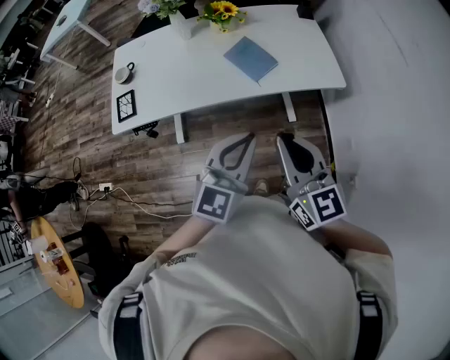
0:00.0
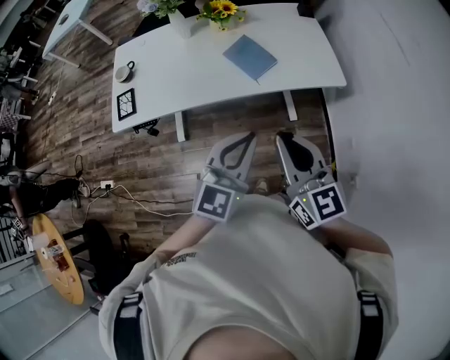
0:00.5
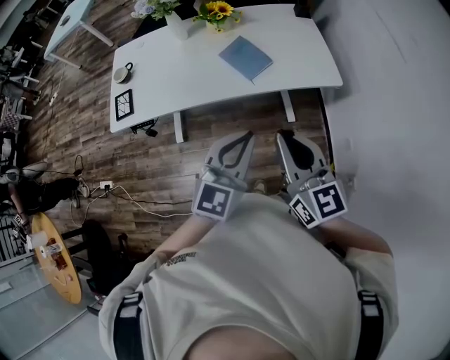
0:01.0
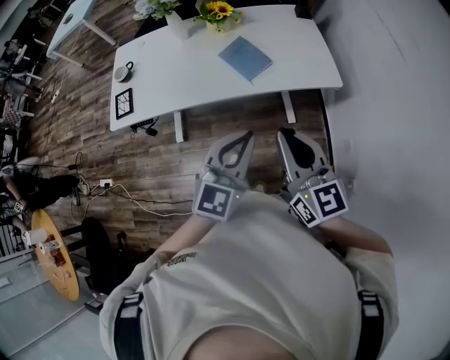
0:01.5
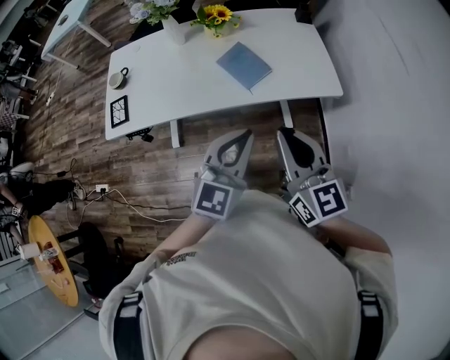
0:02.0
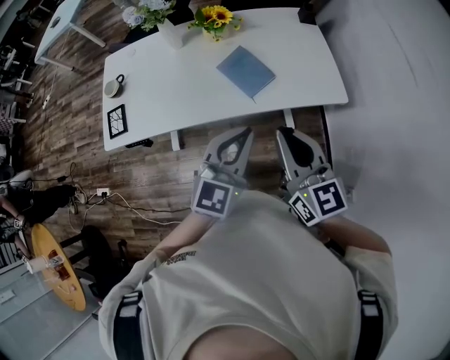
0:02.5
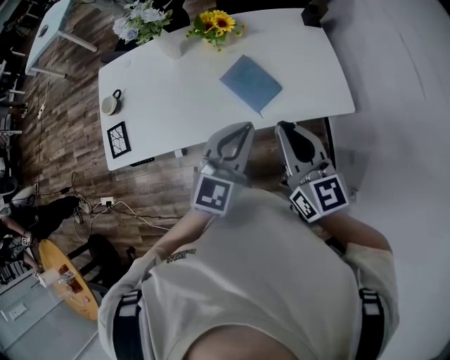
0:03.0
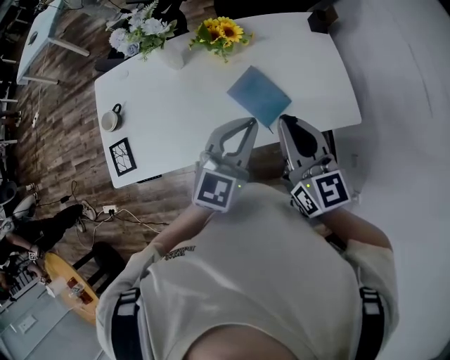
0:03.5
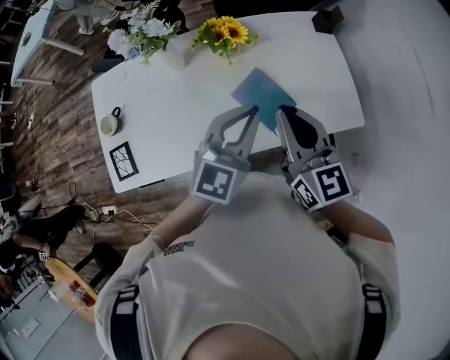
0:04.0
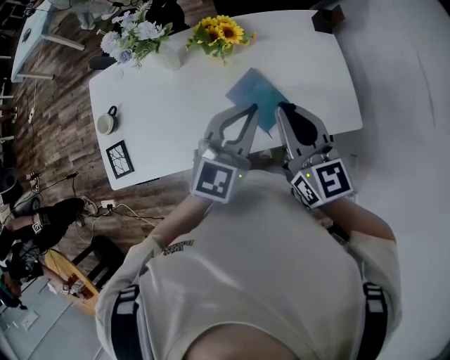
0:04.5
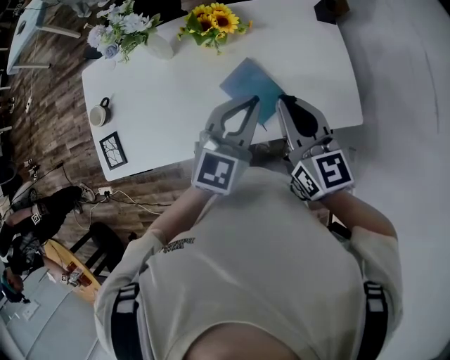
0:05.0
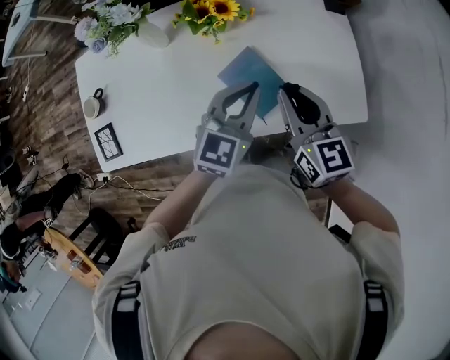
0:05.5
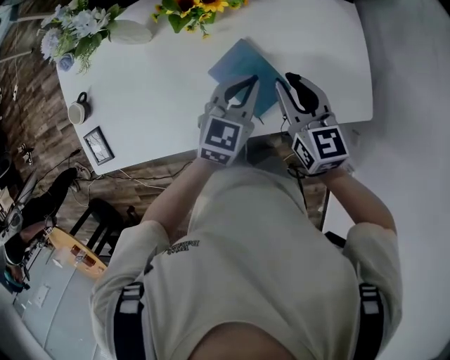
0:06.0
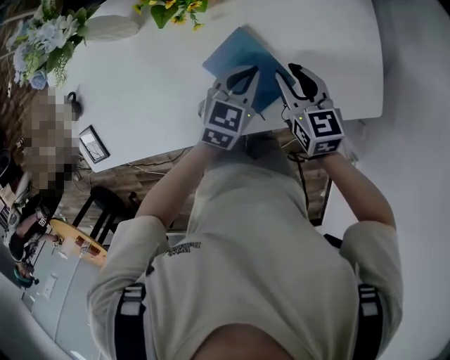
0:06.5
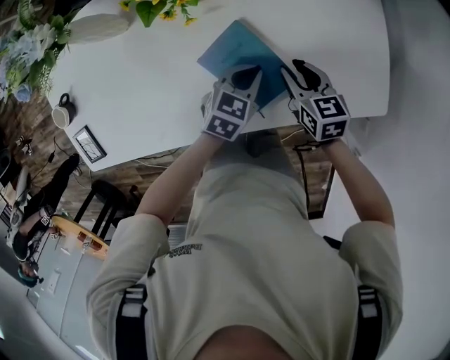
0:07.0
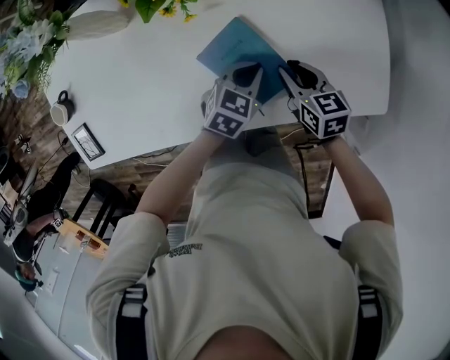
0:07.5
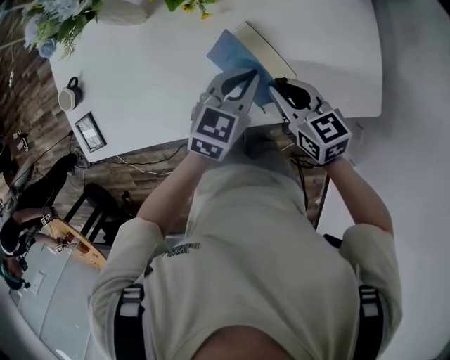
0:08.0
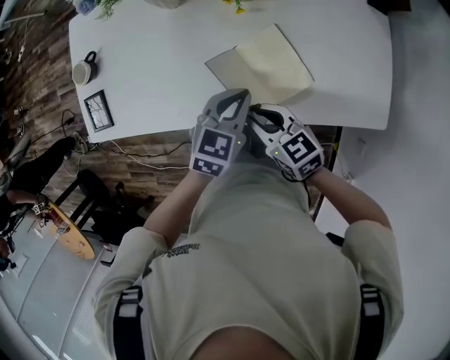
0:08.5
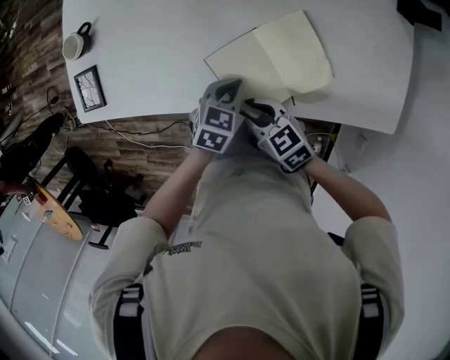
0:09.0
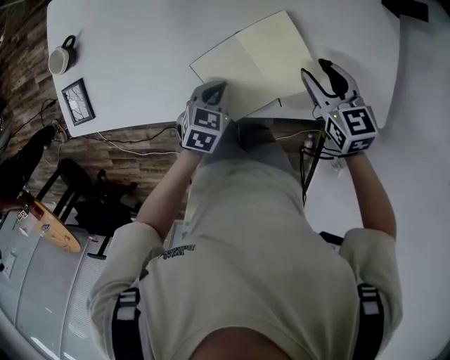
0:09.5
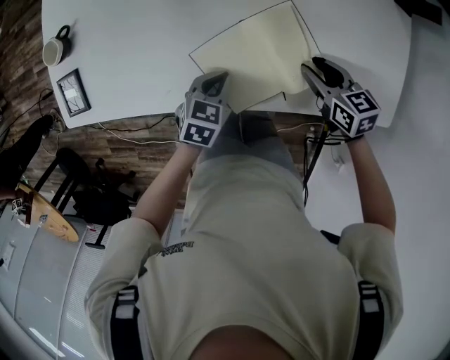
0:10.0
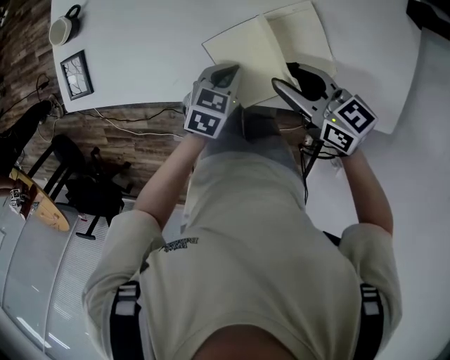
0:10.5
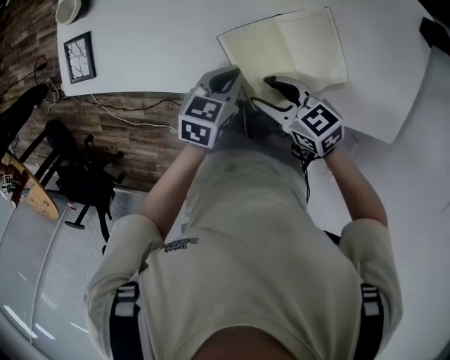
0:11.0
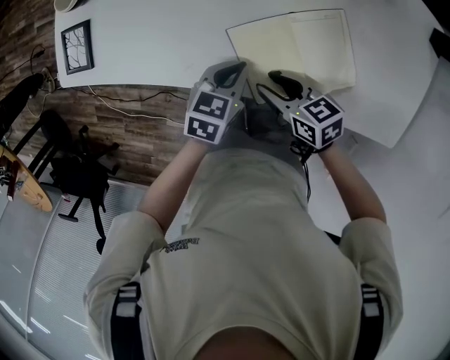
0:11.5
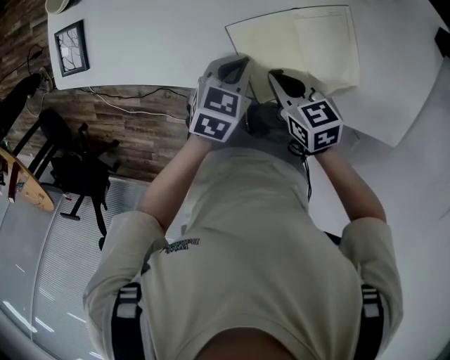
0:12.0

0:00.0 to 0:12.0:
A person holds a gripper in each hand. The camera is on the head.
0:00.0 to 0:02.0: The right gripper heads forward, covering roughly 5 cm; the left gripper changes place by some 5 cm.
0:02.0 to 0:04.0: The left gripper is displaced forward by approximately 30 cm. Meanwhile the right gripper is displaced forward and to the left by approximately 30 cm.
0:04.0 to 0:06.0: The grippers both shift downward and forward by some 20 cm. The left gripper changes its angle by approximately 30 degrees; the right gripper opens.
0:06.0 to 0:08.0: The right gripper goes some 10 cm downward and backward, and swivels approximately 20 degrees. The left gripper goes downward and returns, roughly 15 cm each way.
0:08.0 to 0:10.0: The right gripper heads downward, covering some 10 cm, travels to the left and back again, approximately 15 cm each way, and opens up. Meanwhile the left gripper heads to the left, downward and backward, covering about 20 cm, and swivels approximately 20 degrees.
0:10.0 to 0:12.0: The right gripper goes roughly 20 cm to the left, and closes its fingers.

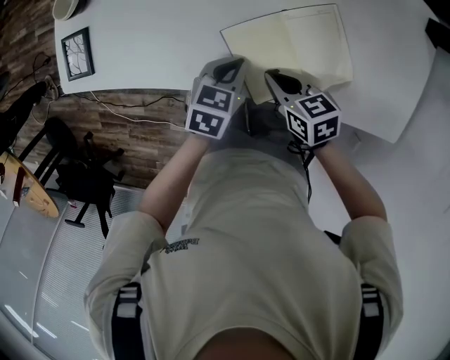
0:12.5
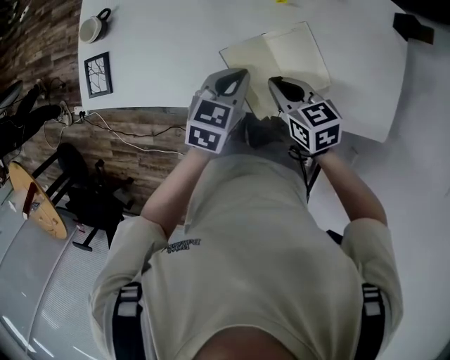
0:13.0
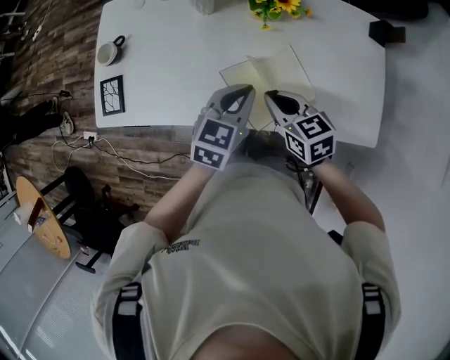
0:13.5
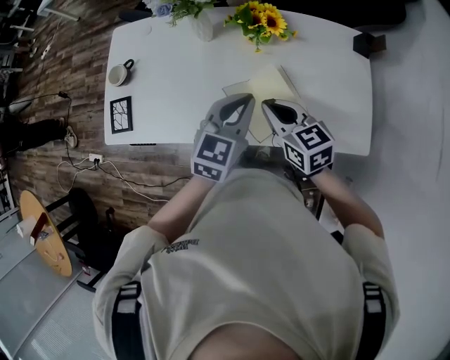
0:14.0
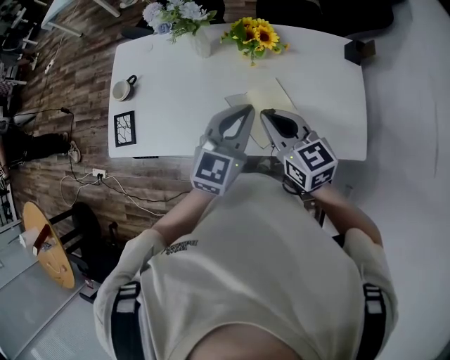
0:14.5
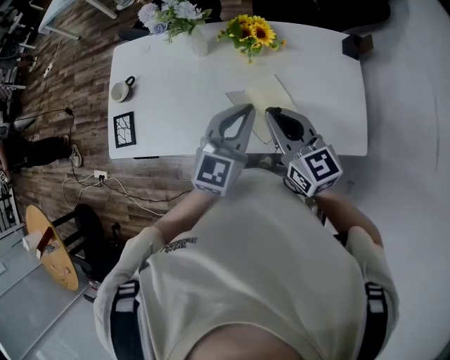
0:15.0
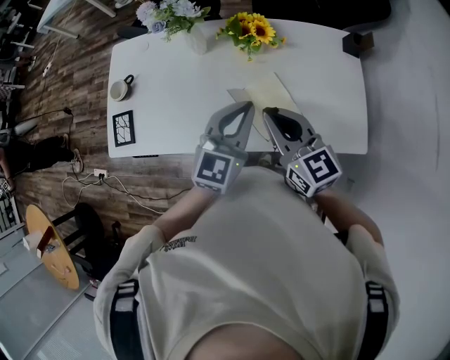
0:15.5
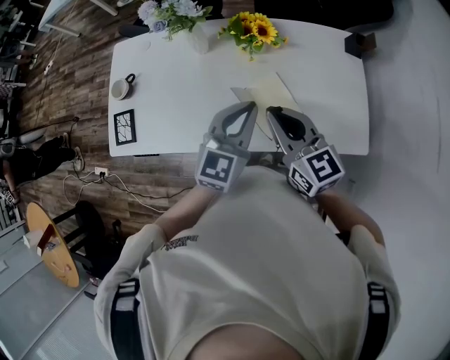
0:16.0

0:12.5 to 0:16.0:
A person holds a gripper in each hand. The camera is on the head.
0:12.5 to 0:14.5: The grippers both shift upward by some 30 cm. The left gripper tilts its fingers about 40 degrees upward; the right gripper changes its angle by approximately 40 degrees.
0:14.5 to 0:16.0: The grippers stay close to where they were, moving slightly.

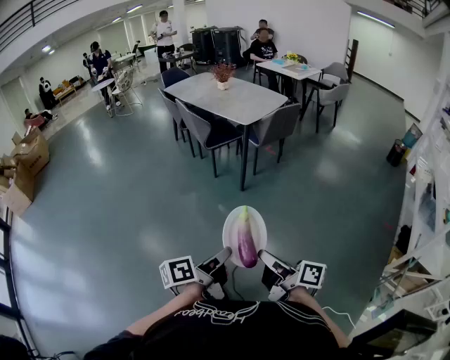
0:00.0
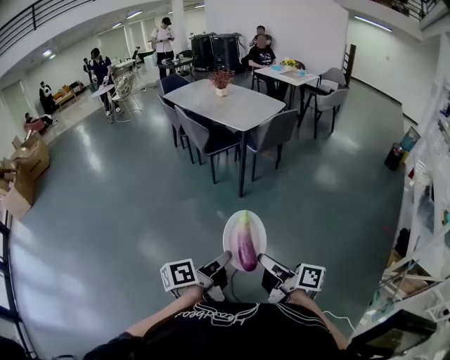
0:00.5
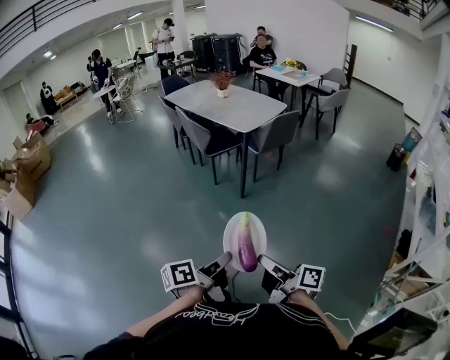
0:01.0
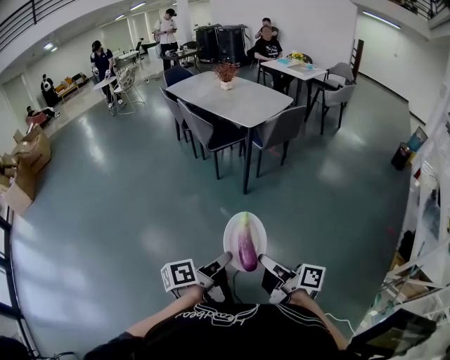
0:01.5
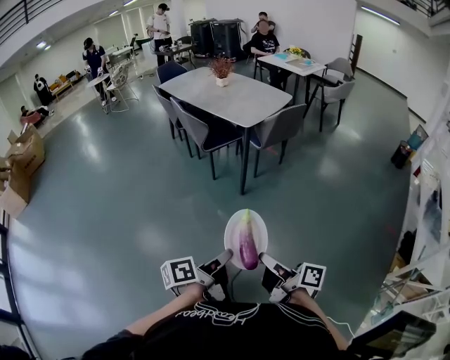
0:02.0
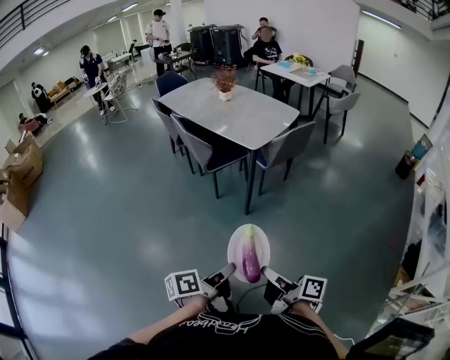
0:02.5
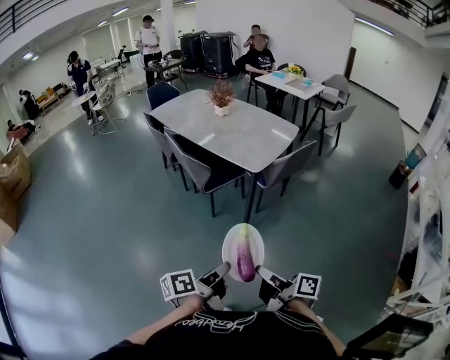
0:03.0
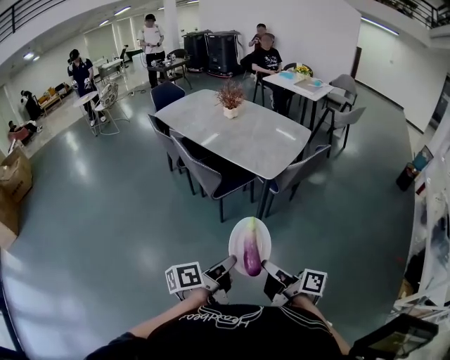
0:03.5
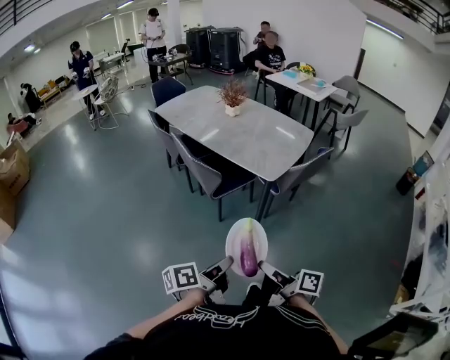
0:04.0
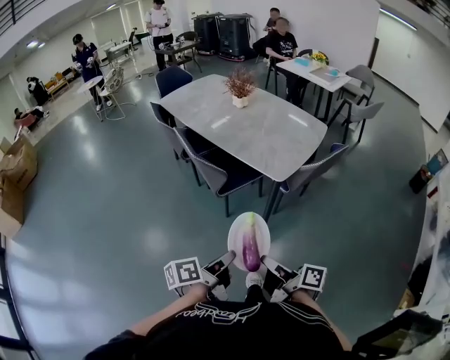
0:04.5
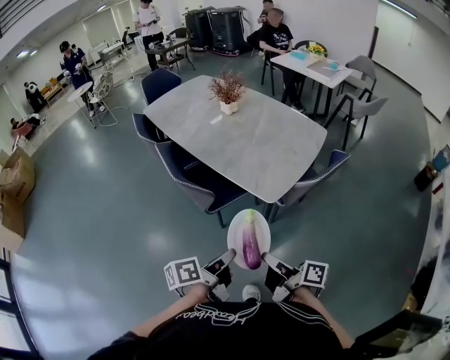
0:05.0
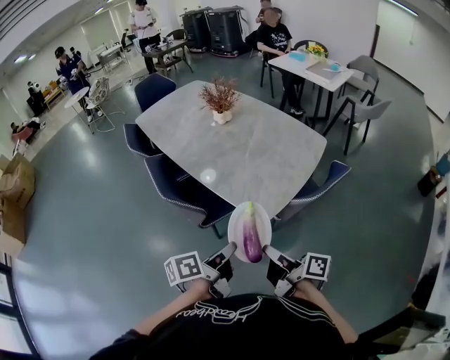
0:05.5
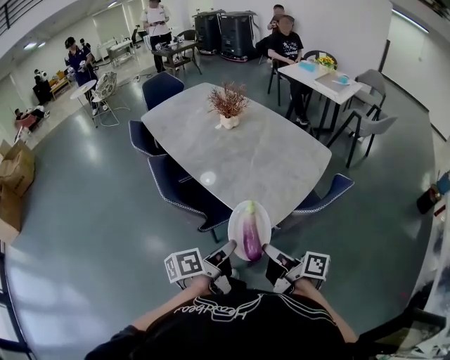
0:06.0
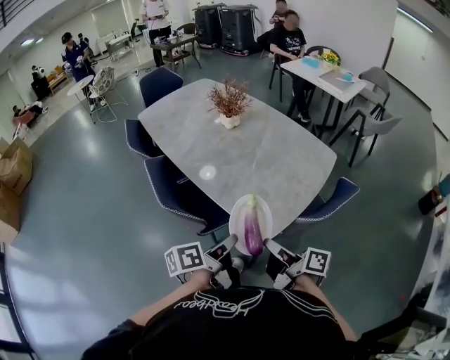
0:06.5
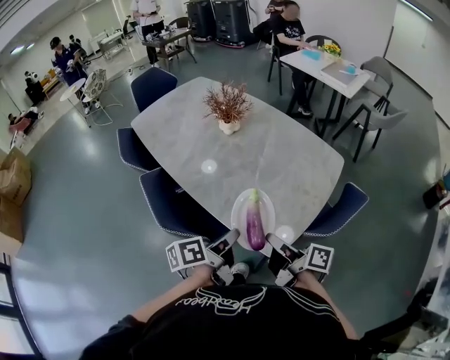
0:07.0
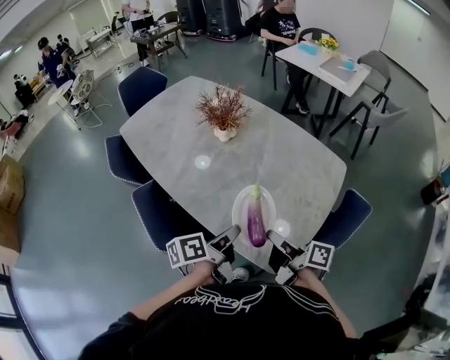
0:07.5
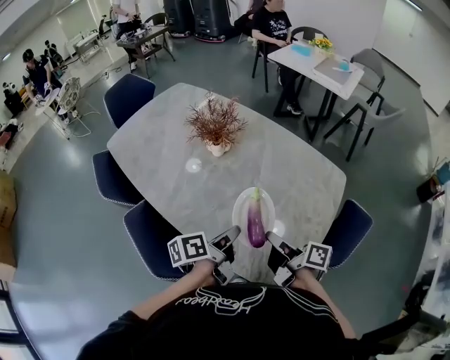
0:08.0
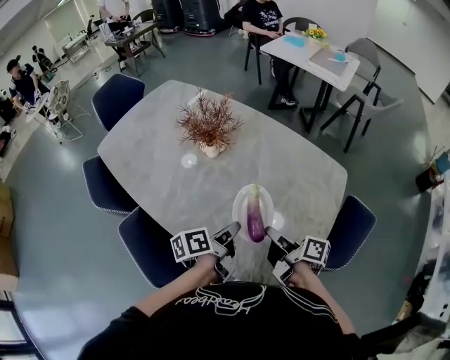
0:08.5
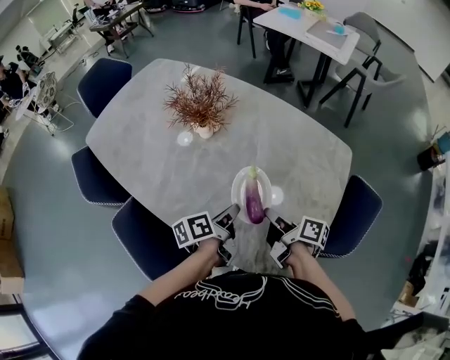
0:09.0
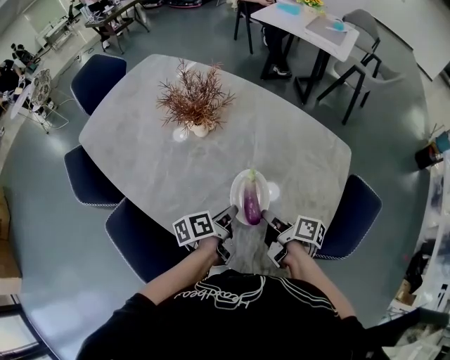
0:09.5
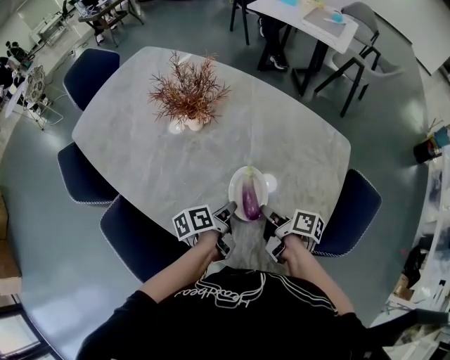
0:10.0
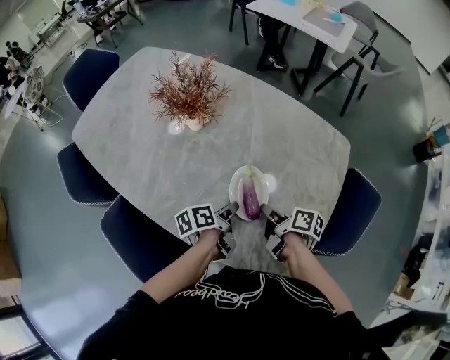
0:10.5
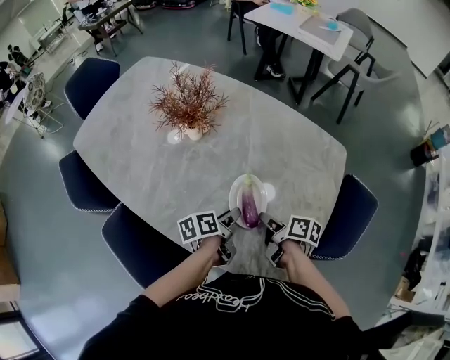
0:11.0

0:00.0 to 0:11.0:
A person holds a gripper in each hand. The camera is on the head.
0:00.0 to 0:02.0: The two grippers go about 10 cm forward.
0:02.0 to 0:03.5: The right gripper goes approximately 40 cm forward and to the left. The left gripper travels forward by roughly 35 cm.
0:03.5 to 0:05.5: The two grippers go some 40 cm forward.
0:05.5 to 0:07.5: The two grippers go roughly 30 cm forward.
0:07.5 to 0:09.0: Both grippers travel together forward and downward, approximately 20 cm.
0:09.0 to 0:11.0: The two grippers go approximately 5 cm downward. The left gripper opens up.
